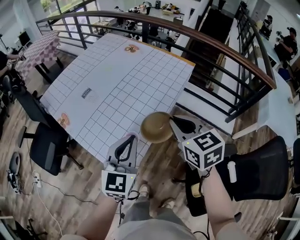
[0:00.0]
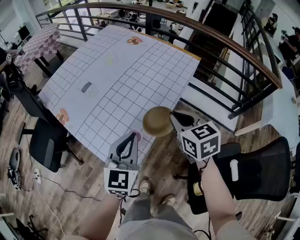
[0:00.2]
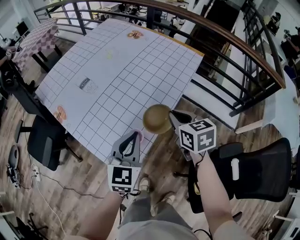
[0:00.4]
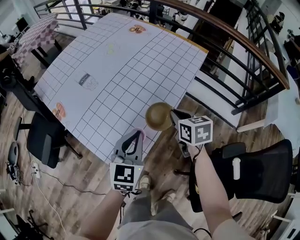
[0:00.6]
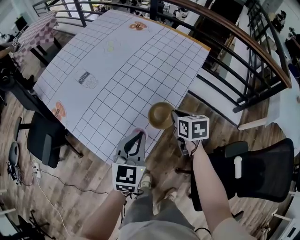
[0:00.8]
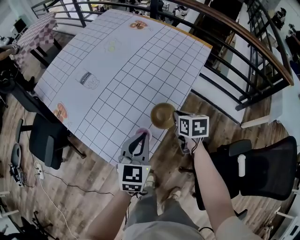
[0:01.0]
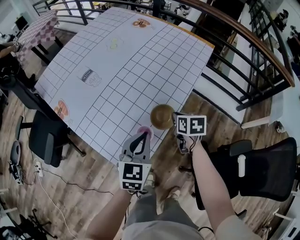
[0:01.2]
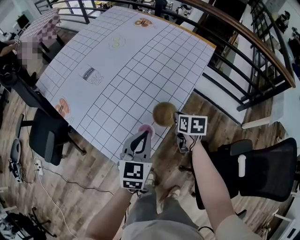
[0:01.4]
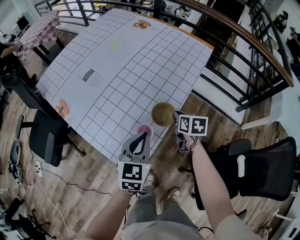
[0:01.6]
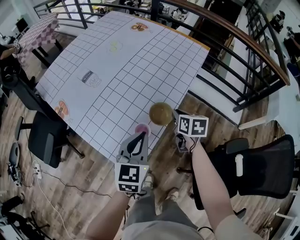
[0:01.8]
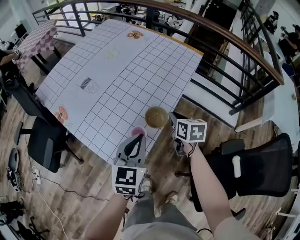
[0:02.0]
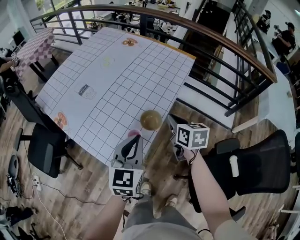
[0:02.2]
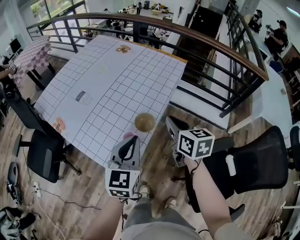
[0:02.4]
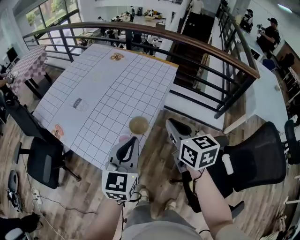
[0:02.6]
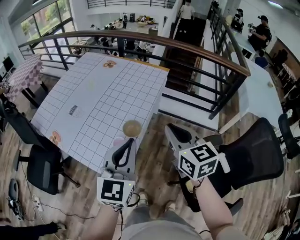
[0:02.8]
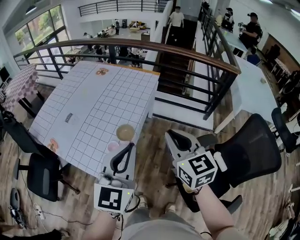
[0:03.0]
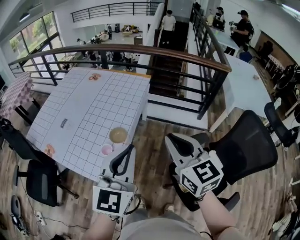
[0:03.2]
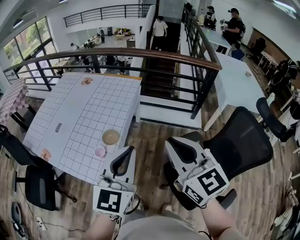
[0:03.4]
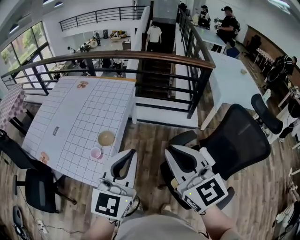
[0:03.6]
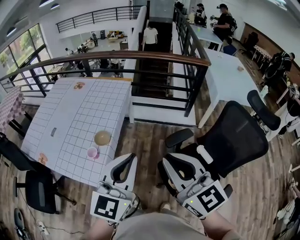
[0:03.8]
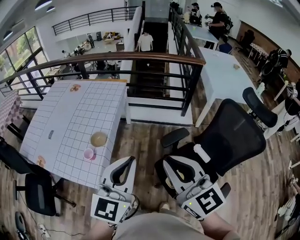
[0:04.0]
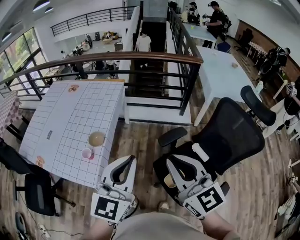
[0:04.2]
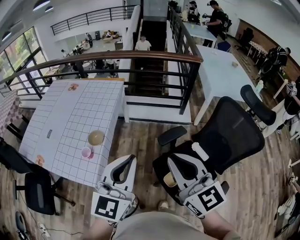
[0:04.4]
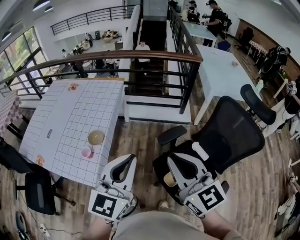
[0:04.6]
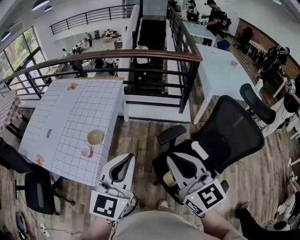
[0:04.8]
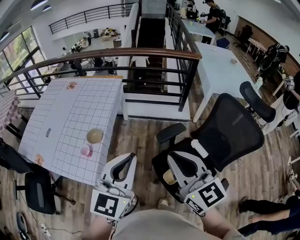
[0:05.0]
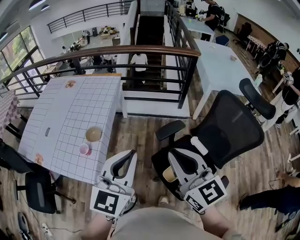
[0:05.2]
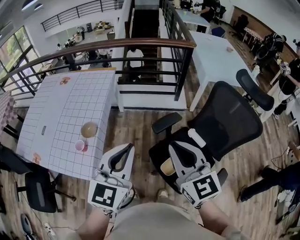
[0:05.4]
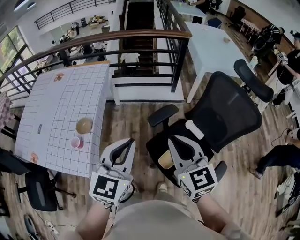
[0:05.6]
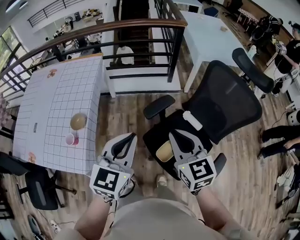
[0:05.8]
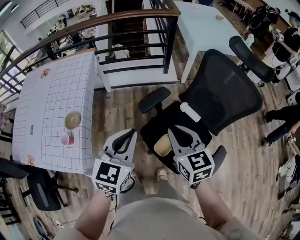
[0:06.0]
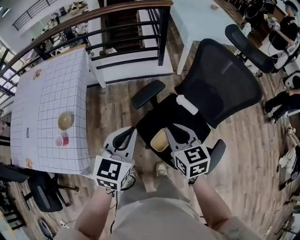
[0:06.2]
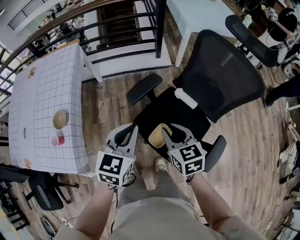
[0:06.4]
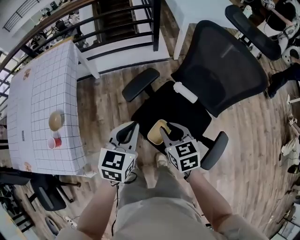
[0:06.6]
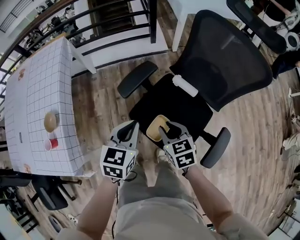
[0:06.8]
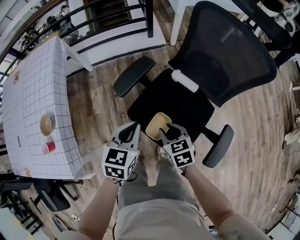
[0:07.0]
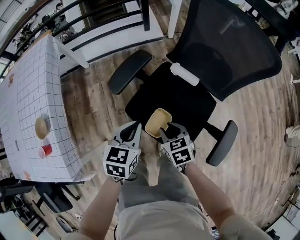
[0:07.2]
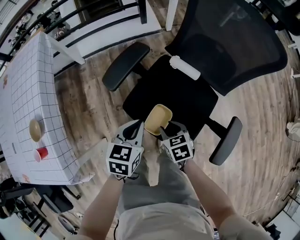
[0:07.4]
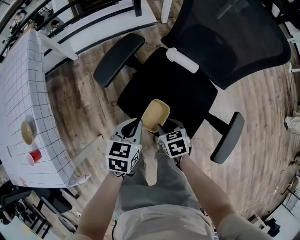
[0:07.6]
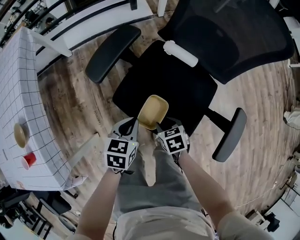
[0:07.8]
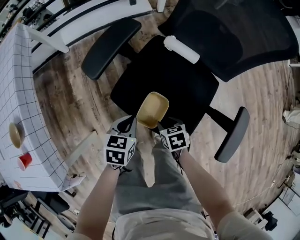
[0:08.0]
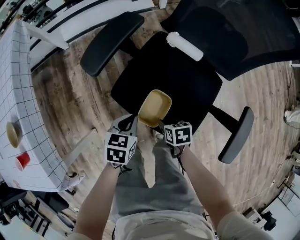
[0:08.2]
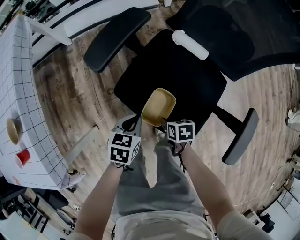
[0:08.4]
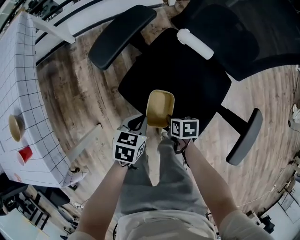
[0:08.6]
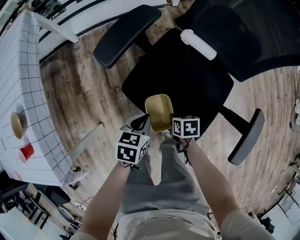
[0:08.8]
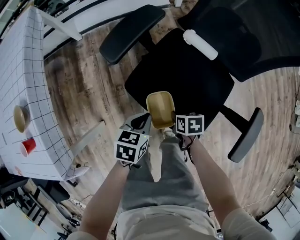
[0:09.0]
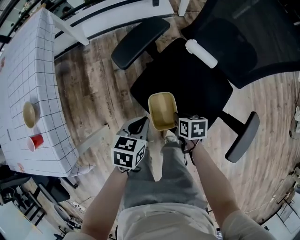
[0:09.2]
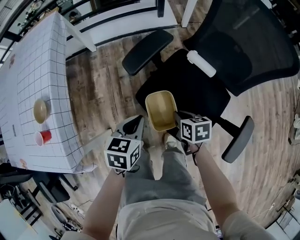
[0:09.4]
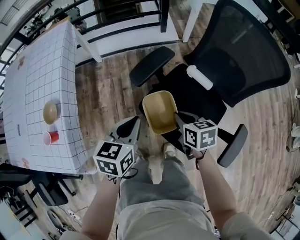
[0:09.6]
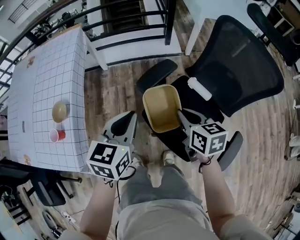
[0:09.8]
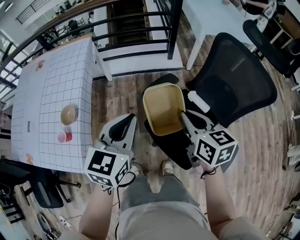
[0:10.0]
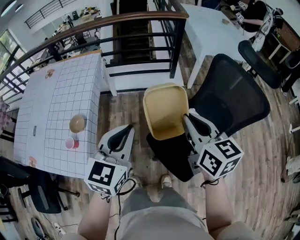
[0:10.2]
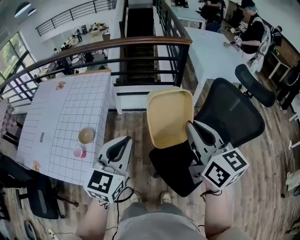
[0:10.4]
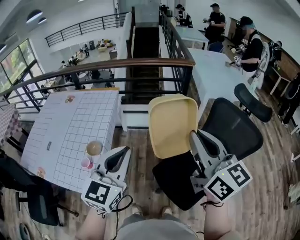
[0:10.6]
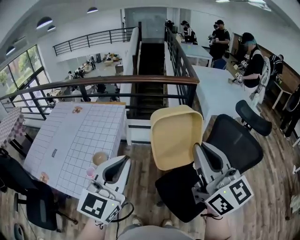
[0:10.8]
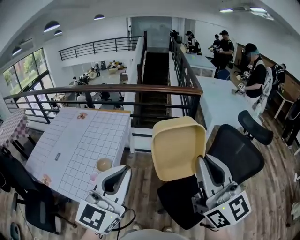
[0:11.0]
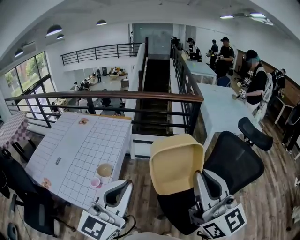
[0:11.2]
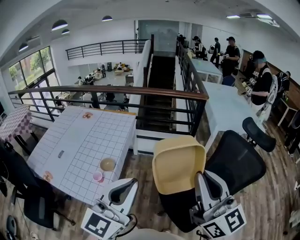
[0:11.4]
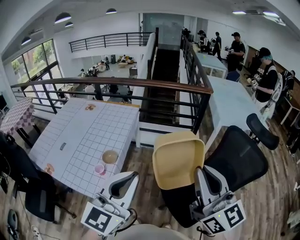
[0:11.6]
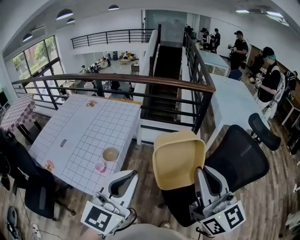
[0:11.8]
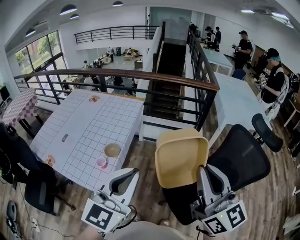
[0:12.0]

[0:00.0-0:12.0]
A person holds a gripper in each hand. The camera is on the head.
0:00.0 to 0:01.6: The left gripper is displaced downward by roughly 15 cm, while the right gripper travels downward by roughly 30 cm, and swivels about 40 degrees.
0:01.6 to 0:03.0: The right gripper shifts about 40 cm upward and backward, and points its fingers some 30 degrees further upward. Meanwhile the left gripper moves upward, backward and to the right, about 35 cm, and changes its angle by roughly 30 degrees.
0:03.0 to 0:04.4: The grippers both shift to the right and backward by about 20 cm.
0:04.4 to 0:06.0: Both grippers move downward and to the right, about 20 cm. The left gripper changes its angle by approximately 20 degrees. Meanwhile the right gripper changes its angle by some 30 degrees.
0:06.0 to 0:07.6: The grippers both shift downward by about 40 cm. The right gripper tips its fingers downward by about 40 degrees, and opens up, while the left gripper rotates about 30 degrees.
0:07.6 to 0:09.0: The grippers both shift downward by roughly 10 cm. The right gripper turns by about 20 degrees, and closes its fingers.
0:09.0 to 0:10.4: Both grippers move upward, roughly 60 cm. The left gripper points its fingers about 40 degrees further upward, while the right gripper angles its fingers upward, by approximately 60 degrees.
0:10.4 to 0:12.0: The left gripper travels backward, upward and to the left by approximately 20 cm; the right gripper travels upward, backward and to the left by roughly 15 cm, and rotates roughly 20 degrees.

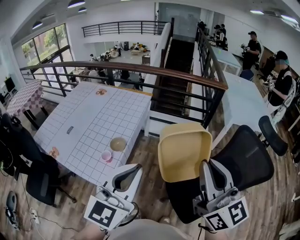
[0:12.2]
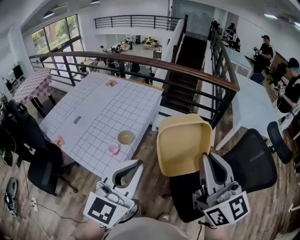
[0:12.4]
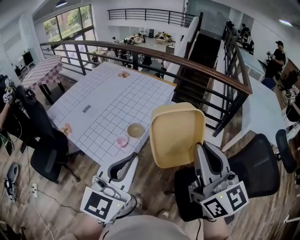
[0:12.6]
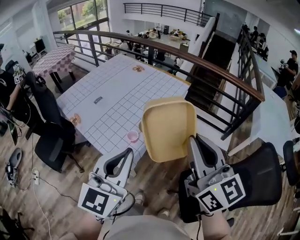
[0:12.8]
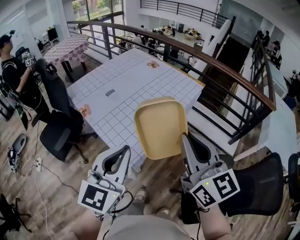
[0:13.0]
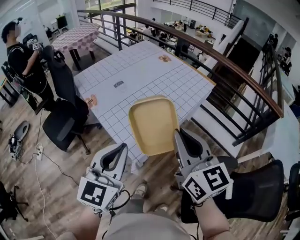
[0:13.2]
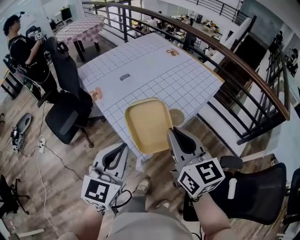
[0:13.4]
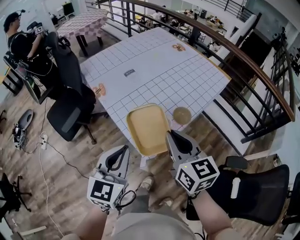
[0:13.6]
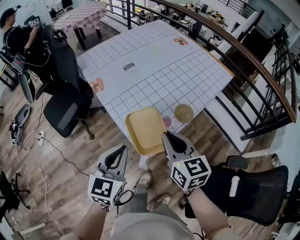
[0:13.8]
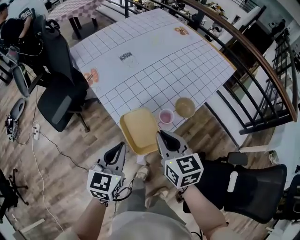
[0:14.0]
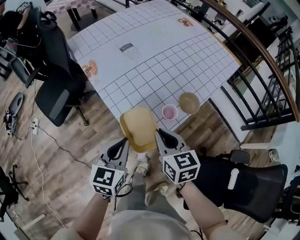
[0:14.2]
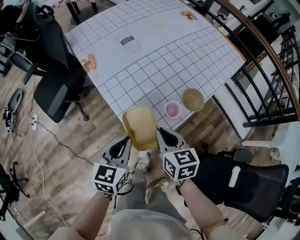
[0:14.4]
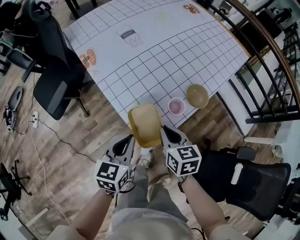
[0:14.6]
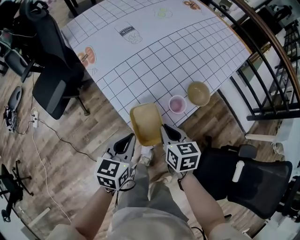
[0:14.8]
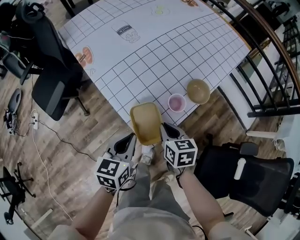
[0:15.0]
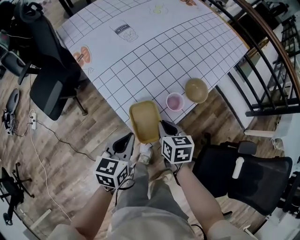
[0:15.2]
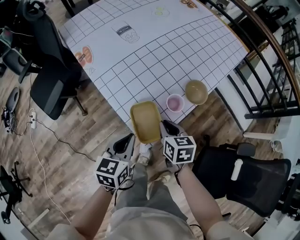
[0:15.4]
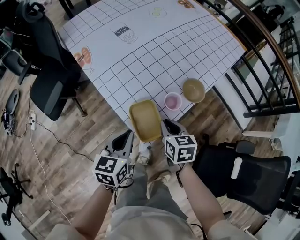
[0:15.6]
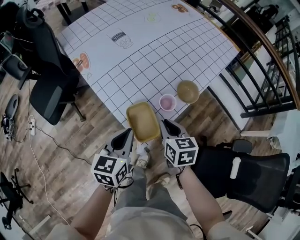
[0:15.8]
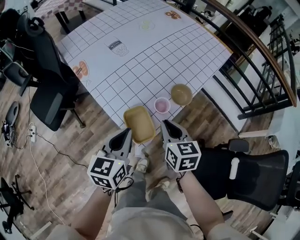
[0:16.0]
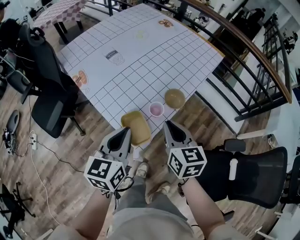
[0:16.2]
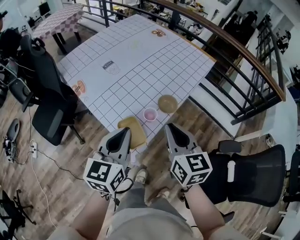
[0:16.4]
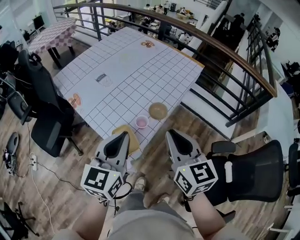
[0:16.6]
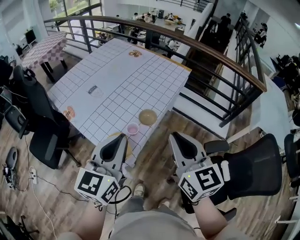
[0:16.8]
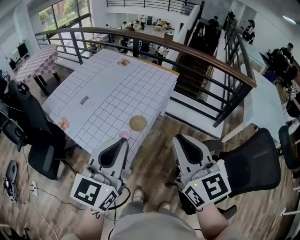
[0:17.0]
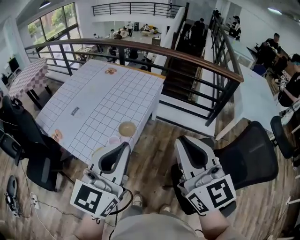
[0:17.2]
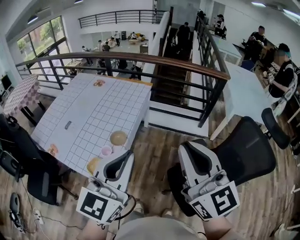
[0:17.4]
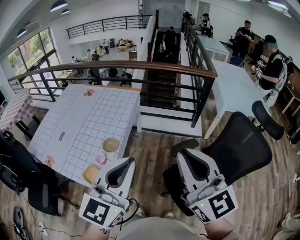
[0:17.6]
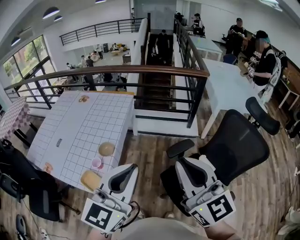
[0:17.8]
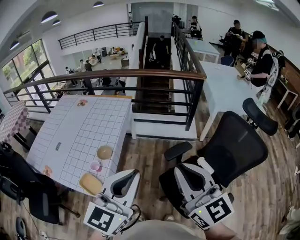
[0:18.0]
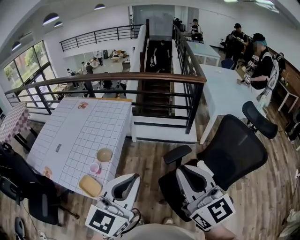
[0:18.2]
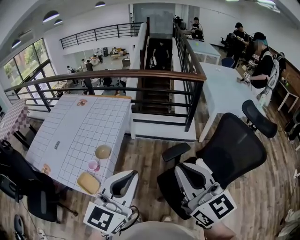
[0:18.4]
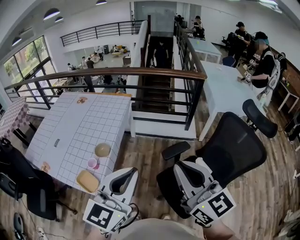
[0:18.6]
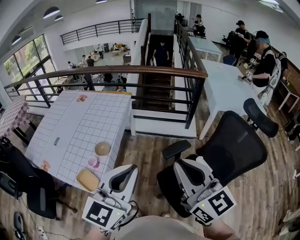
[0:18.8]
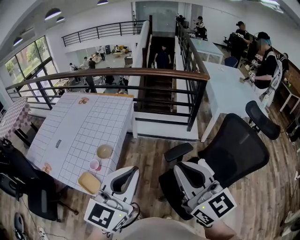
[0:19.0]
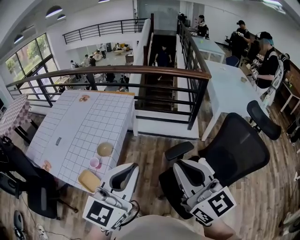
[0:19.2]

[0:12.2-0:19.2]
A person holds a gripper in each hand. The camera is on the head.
0:12.2 to 0:13.6: The left gripper changes place by roughly 35 cm, and turns by roughly 50 degrees; the right gripper shifts by about 40 cm, and swivels roughly 50 degrees.
0:13.6 to 0:15.0: Both grippers move downward, about 30 cm. The right gripper turns by some 30 degrees. The left gripper changes its angle by some 30 degrees.
0:15.0 to 0:16.4: The grippers both shift upward by approximately 25 cm. The right gripper rotates about 30 degrees. Meanwhile the left gripper swivels about 20 degrees.
0:16.4 to 0:17.8: The left gripper changes place by roughly 40 cm, and swivels approximately 50 degrees. The right gripper changes place by roughly 40 cm, and rotates some 40 degrees.
0:17.8 to 0:19.2: The grippers move only a little.

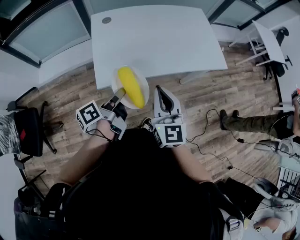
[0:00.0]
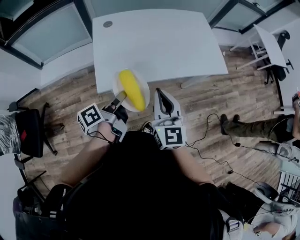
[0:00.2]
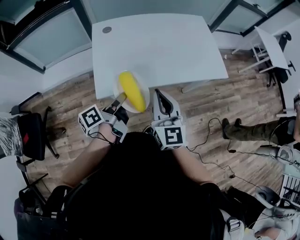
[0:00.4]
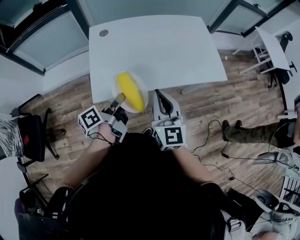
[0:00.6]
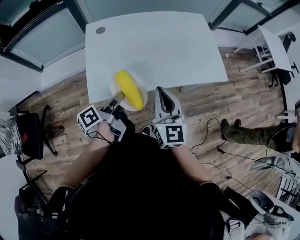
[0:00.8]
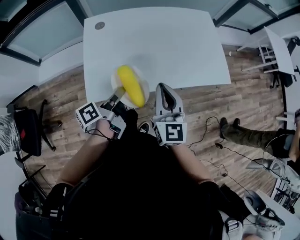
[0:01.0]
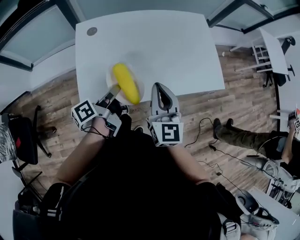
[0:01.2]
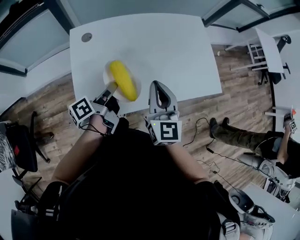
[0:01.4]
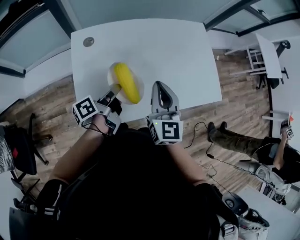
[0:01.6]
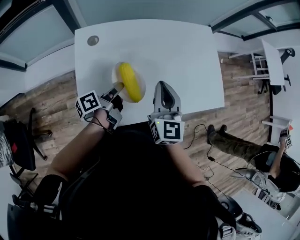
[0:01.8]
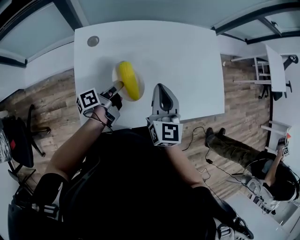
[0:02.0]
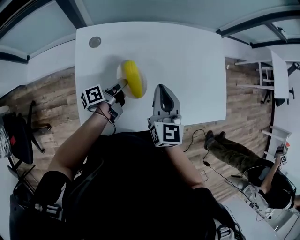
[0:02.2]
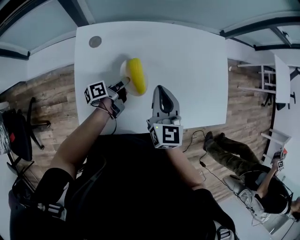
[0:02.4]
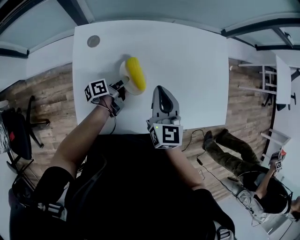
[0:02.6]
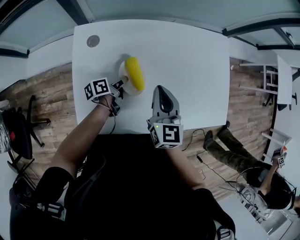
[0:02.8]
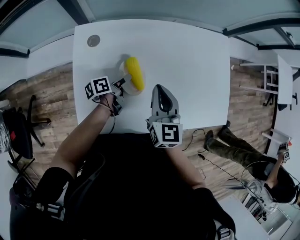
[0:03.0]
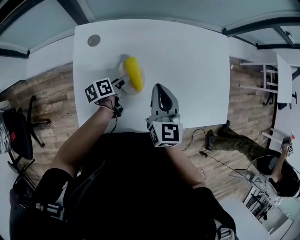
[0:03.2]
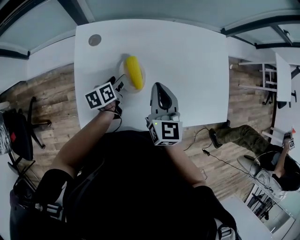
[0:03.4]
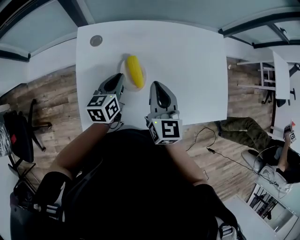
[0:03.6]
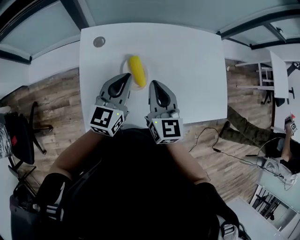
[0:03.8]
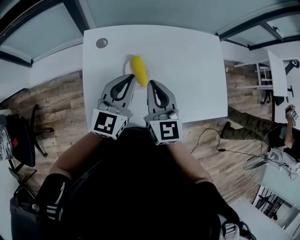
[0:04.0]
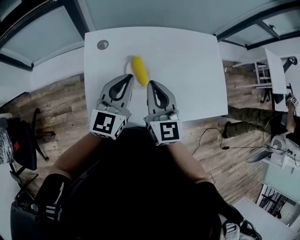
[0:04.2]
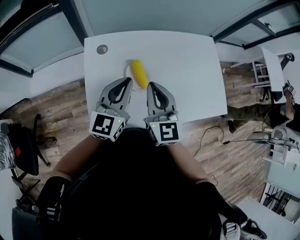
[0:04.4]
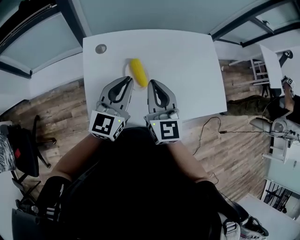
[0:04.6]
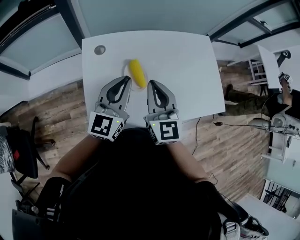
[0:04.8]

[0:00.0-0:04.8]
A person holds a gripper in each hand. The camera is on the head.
0:00.0 to 0:01.6: The grippers both shift forward by about 20 cm.
0:01.6 to 0:03.2: The left gripper shifts some 15 cm downward and forward, rotates approximately 30 degrees, and opens, while the right gripper is displaced forward and downward by about 10 cm.
0:03.2 to 0:04.8: The right gripper shifts roughly 10 cm upward, backward and to the left; the left gripper travels upward by roughly 25 cm, rotates around the line of its fingers by roughly 70 degrees, clockwise from behind, and closes up.
